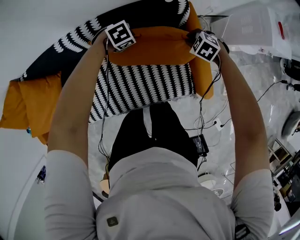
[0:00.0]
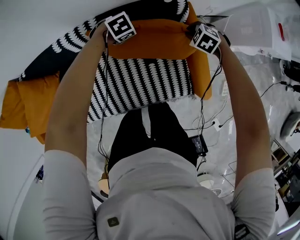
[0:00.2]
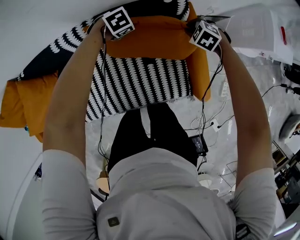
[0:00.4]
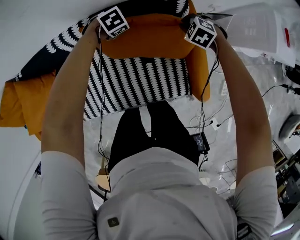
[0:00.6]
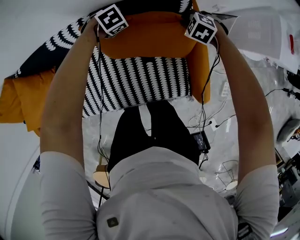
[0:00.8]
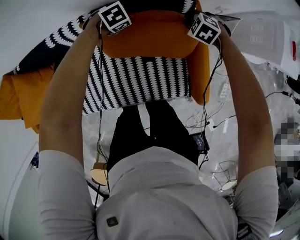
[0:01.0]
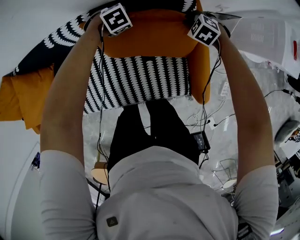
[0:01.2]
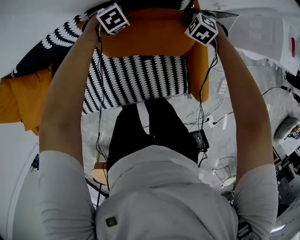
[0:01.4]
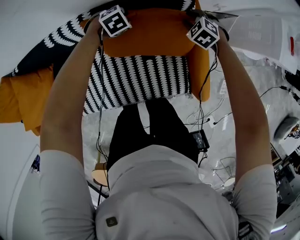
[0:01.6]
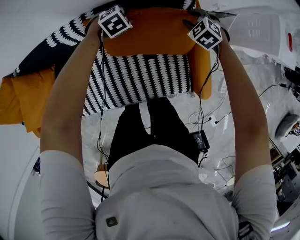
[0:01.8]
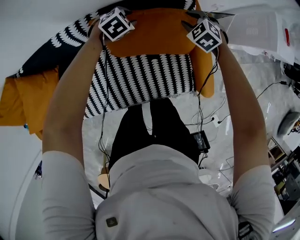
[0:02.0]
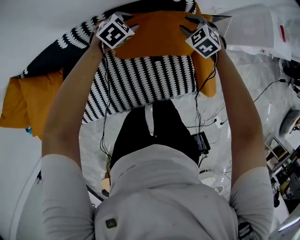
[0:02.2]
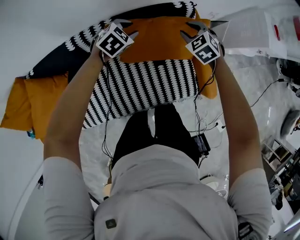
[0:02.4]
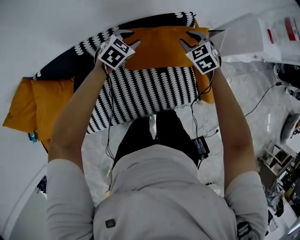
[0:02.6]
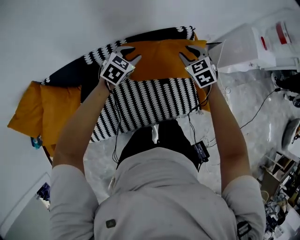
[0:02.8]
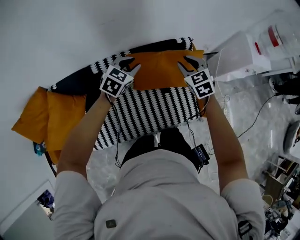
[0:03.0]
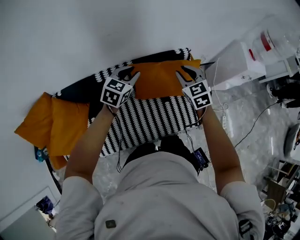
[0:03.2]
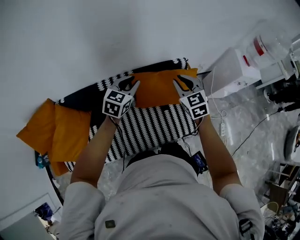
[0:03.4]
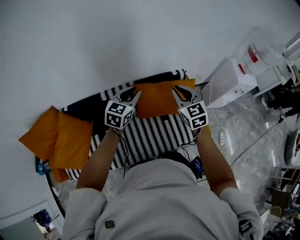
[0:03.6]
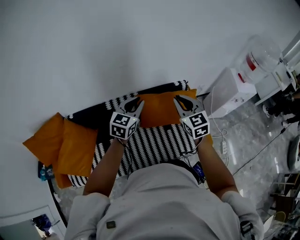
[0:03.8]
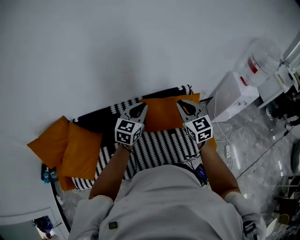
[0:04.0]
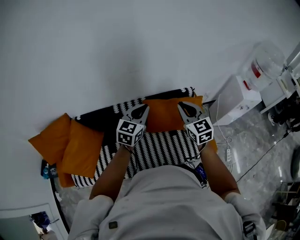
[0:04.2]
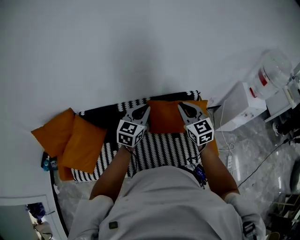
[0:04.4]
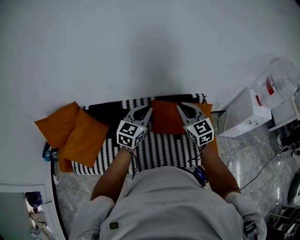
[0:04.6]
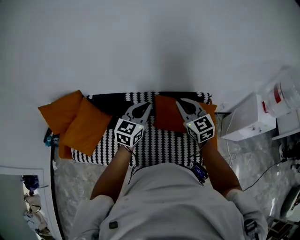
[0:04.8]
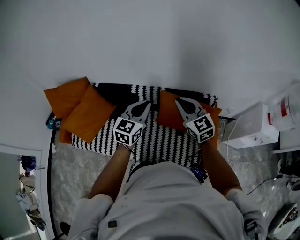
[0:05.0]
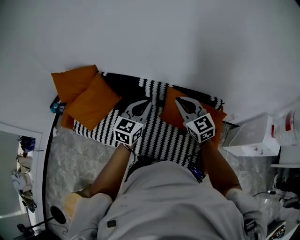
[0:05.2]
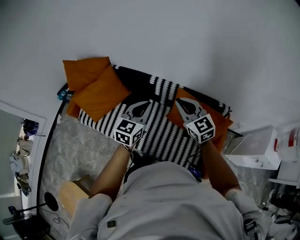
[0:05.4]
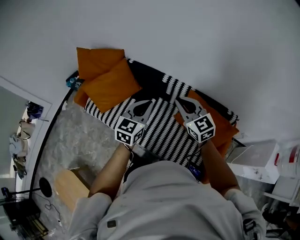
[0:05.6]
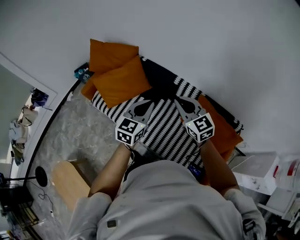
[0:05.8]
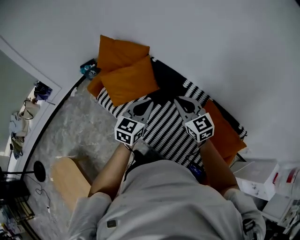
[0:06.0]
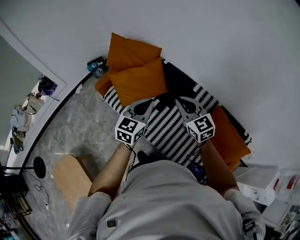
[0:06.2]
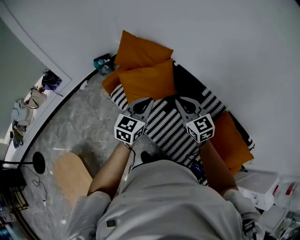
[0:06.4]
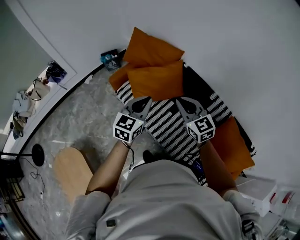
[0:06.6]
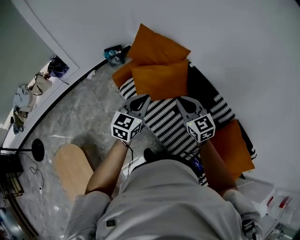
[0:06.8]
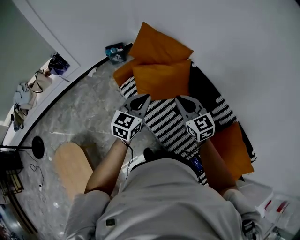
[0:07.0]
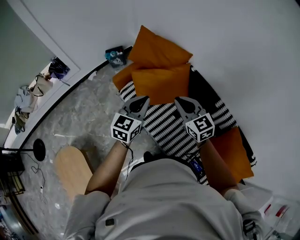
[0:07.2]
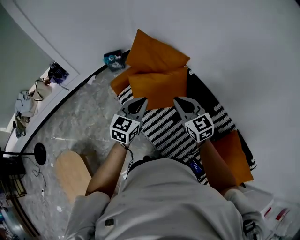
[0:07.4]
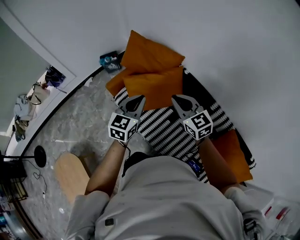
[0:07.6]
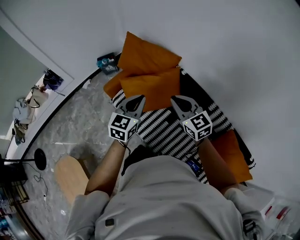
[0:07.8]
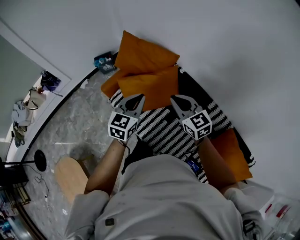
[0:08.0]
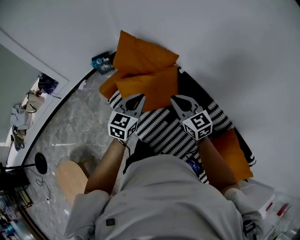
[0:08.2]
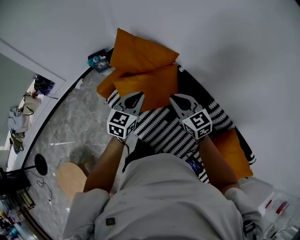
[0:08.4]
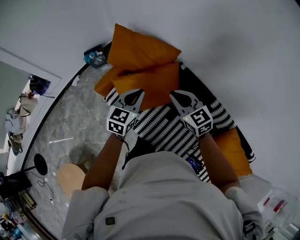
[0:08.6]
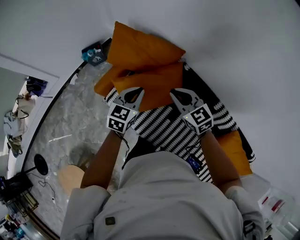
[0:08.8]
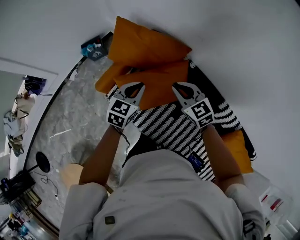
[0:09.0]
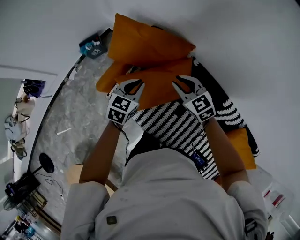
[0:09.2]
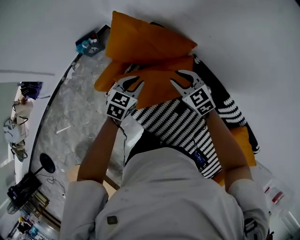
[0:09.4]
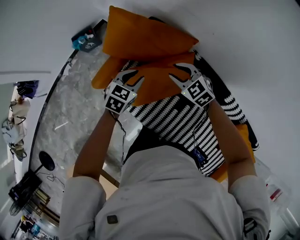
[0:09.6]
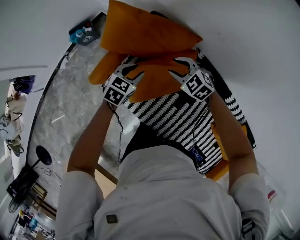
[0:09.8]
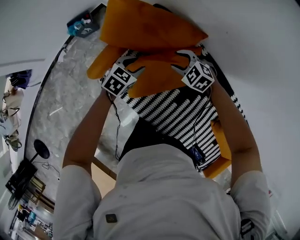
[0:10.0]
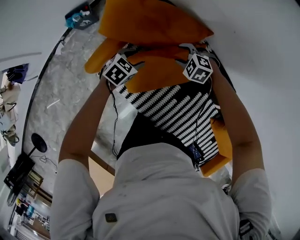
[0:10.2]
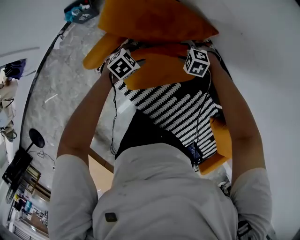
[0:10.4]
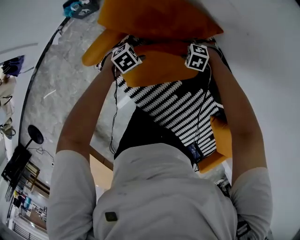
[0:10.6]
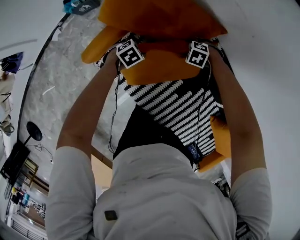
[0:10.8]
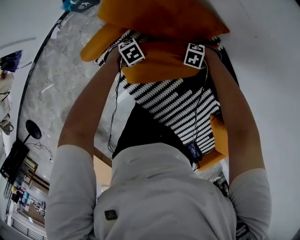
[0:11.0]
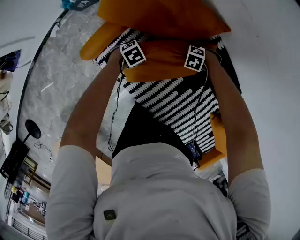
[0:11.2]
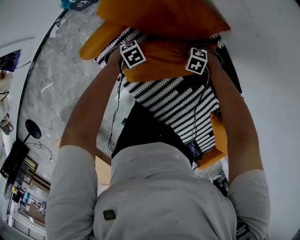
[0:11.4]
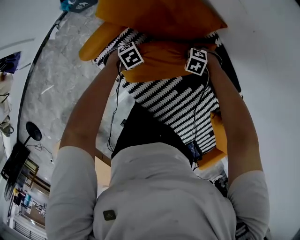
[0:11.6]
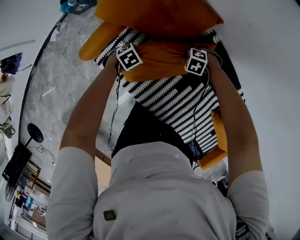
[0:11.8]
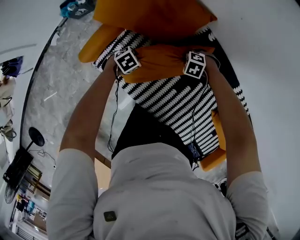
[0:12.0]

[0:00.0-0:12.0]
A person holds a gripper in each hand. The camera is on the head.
0:00.0 to 0:01.6: The right gripper changes place by approximately 10 cm, and opens; the left gripper moves approximately 10 cm, and opens its fingers.
0:01.6 to 0:03.0: The two grippers go approximately 30 cm upward. The right gripper angles its fingers upward, by some 30 degrees. Meanwhile the left gripper points its fingers roughly 40 degrees further upward.
0:03.0 to 0:04.4: The two grippers go some 20 cm upward and backward. The left gripper swivels about 30 degrees, and closes. The right gripper changes its angle by roughly 30 degrees, and closes.
0:04.4 to 0:06.0: The right gripper ends up about 35 cm from where it was, and rotates roughly 60 degrees, while the left gripper changes place by approximately 30 cm, and turns by about 50 degrees.
0:06.0 to 0:07.6: The two grippers go about 30 cm forward and to the left.
0:07.6 to 0:09.0: The two grippers go about 30 cm forward and downward.
0:09.0 to 0:10.4: Both grippers travel together downward, approximately 30 cm. The left gripper rotates about 40 degrees, and opens up. The right gripper points its fingers some 50 degrees further downward, and opens up.
0:10.4 to 0:12.0: The left gripper goes roughly 5 cm downward, and closes, while the right gripper moves about 10 cm, and closes its fingers.

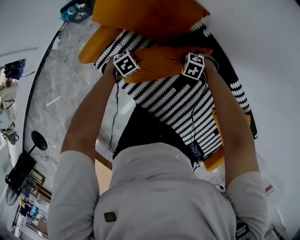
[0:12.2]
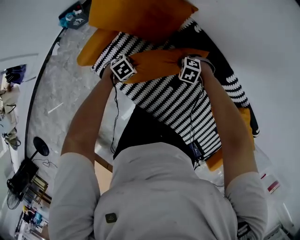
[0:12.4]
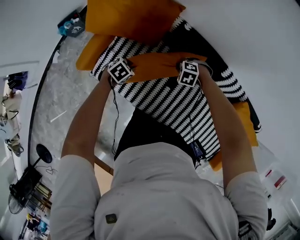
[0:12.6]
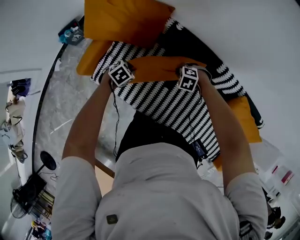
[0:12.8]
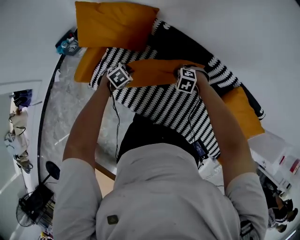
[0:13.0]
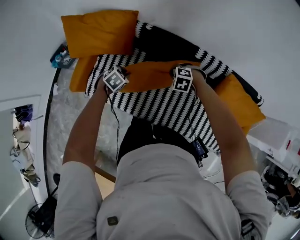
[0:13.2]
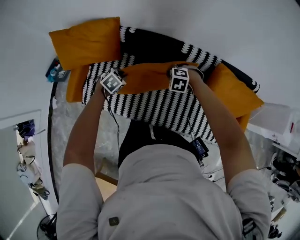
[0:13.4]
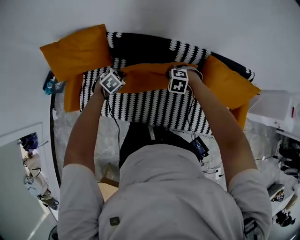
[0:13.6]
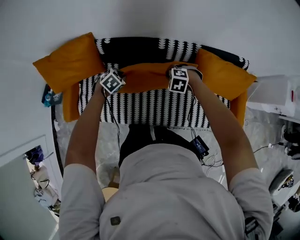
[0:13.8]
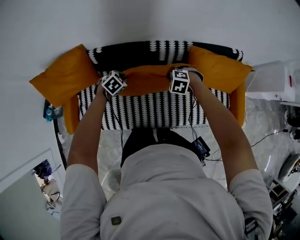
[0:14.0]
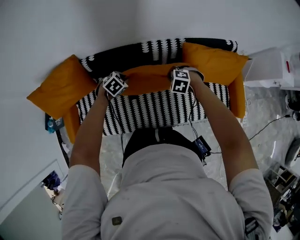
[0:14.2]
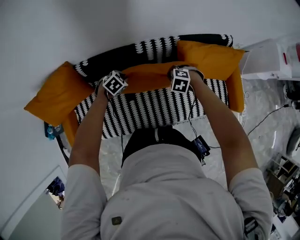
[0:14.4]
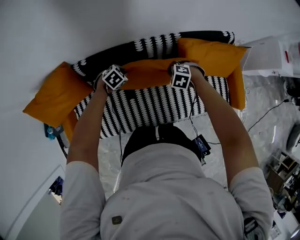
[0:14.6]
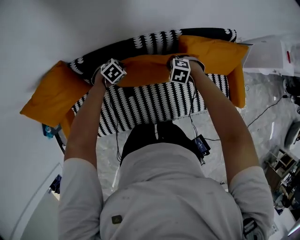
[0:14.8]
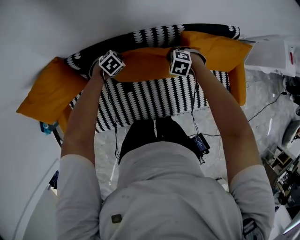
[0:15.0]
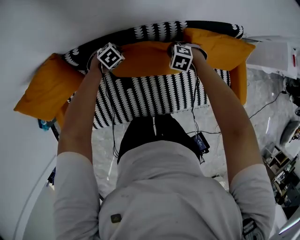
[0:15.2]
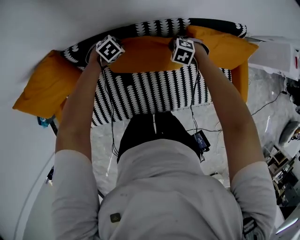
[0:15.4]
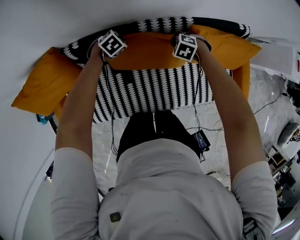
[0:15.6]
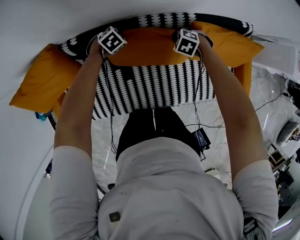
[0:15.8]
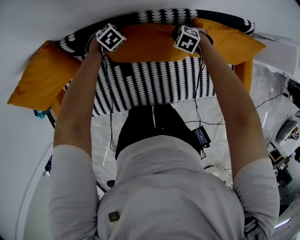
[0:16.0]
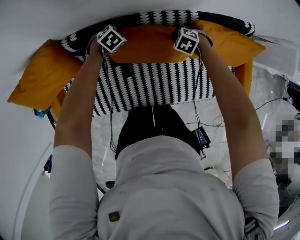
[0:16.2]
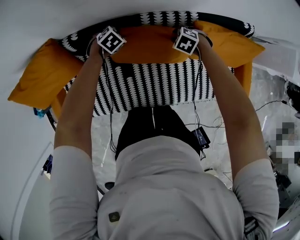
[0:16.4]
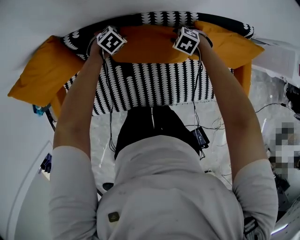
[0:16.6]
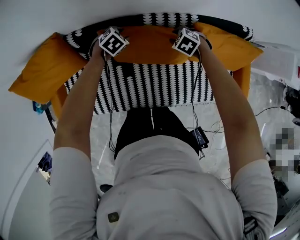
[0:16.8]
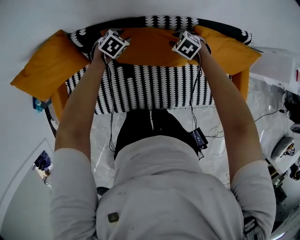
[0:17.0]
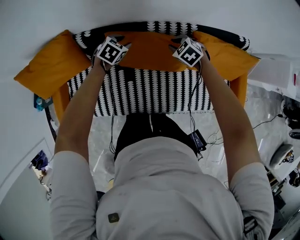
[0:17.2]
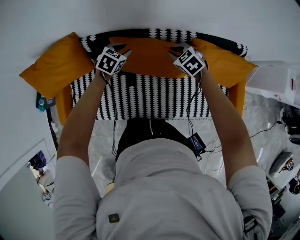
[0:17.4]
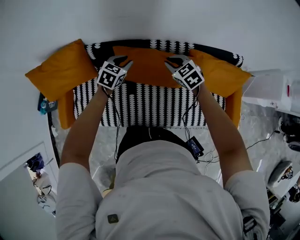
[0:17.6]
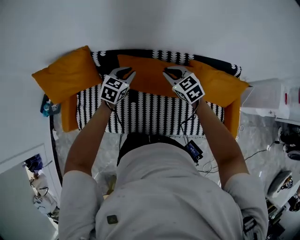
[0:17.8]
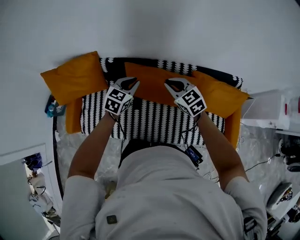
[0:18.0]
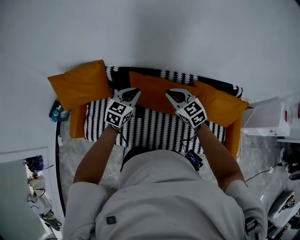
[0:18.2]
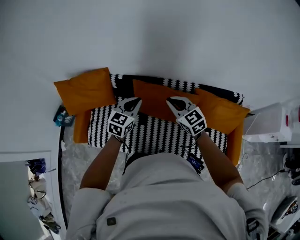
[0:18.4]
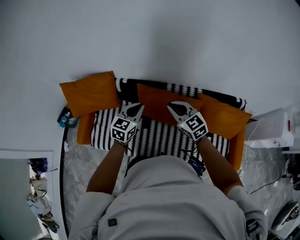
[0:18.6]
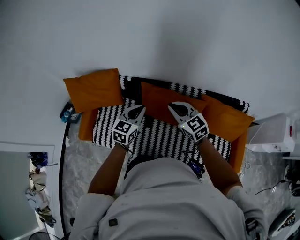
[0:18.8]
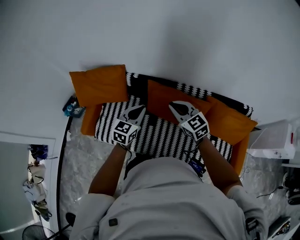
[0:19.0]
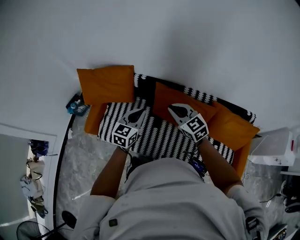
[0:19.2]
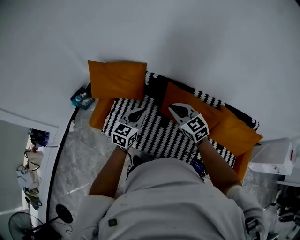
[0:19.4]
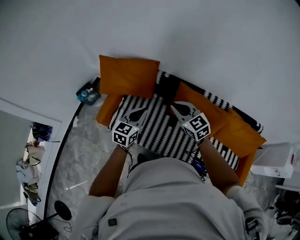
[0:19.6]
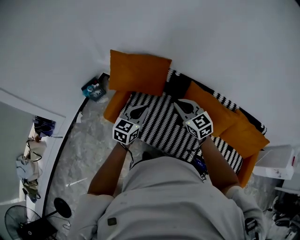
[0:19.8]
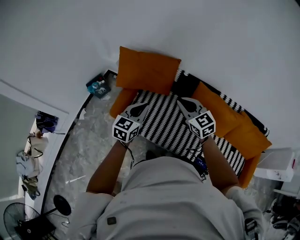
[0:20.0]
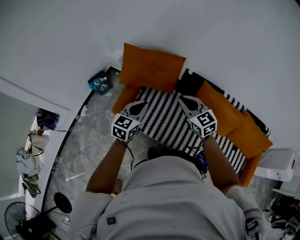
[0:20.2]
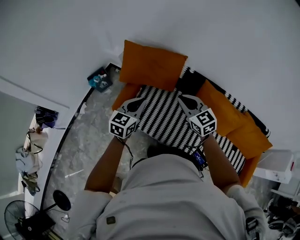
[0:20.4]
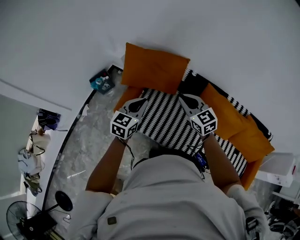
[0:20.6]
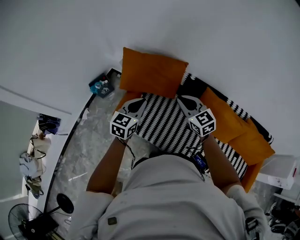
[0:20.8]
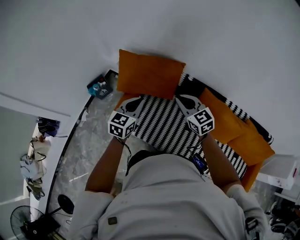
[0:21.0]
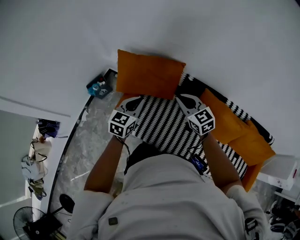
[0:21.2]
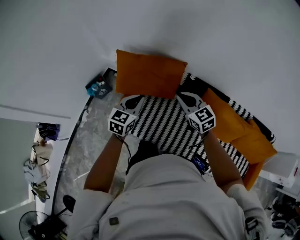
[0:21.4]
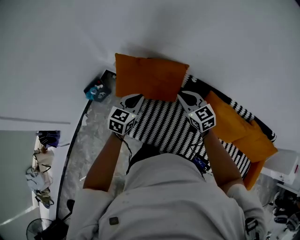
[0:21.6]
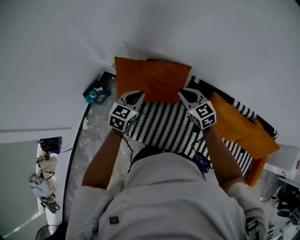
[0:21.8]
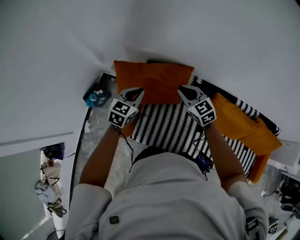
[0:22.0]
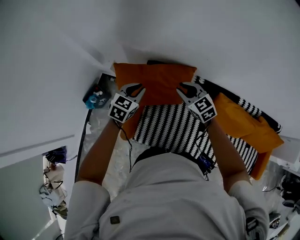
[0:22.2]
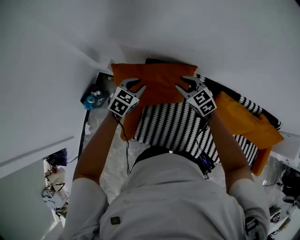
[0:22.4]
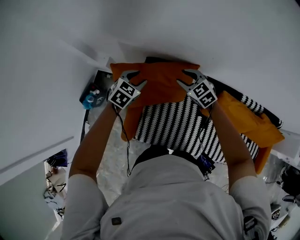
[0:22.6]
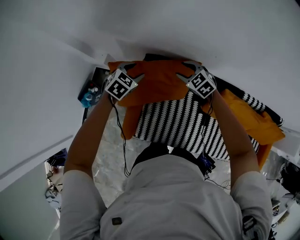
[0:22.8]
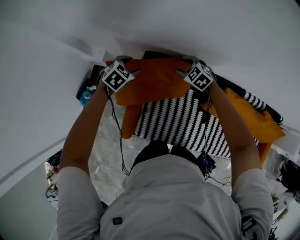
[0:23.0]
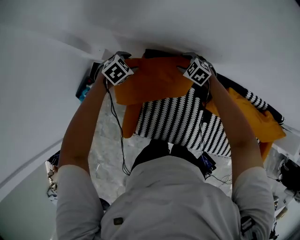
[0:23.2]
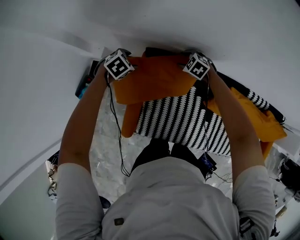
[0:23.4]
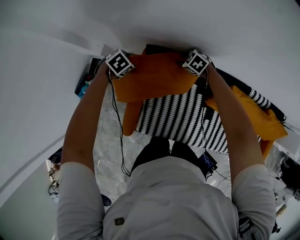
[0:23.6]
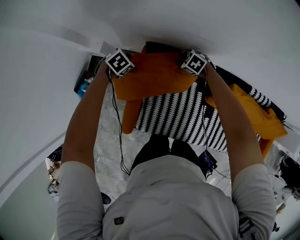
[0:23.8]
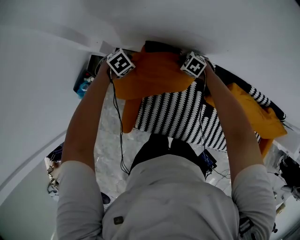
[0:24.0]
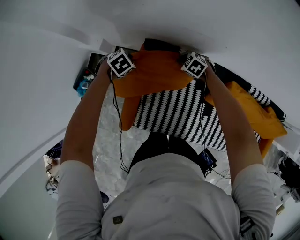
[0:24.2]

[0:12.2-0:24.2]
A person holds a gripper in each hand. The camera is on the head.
0:12.2 to 0:13.8: The left gripper shifts by some 40 cm, and swivels about 40 degrees, while the right gripper shifts by approximately 40 cm, and rotates roughly 30 degrees.
0:13.8 to 0:15.2: The left gripper moves about 25 cm. Meanwhile the right gripper moves some 20 cm, and swivels approximately 20 degrees.
0:15.2 to 0:16.6: The left gripper opens up; the right gripper opens.
0:16.6 to 0:18.2: Both grippers travel together upward, approximately 30 cm. The left gripper tilts its fingers some 40 degrees upward, and closes. The right gripper points its fingers approximately 50 degrees further upward, and closes up.
0:18.2 to 0:19.8: The grippers both shift to the left by about 35 cm. The left gripper changes its angle by roughly 20 degrees.
0:19.8 to 0:21.2: The left gripper heads forward and to the left, covering some 15 cm. Meanwhile the right gripper moves forward, about 15 cm.
0:21.2 to 0:22.6: The grippers both shift forward and downward by about 35 cm. The left gripper rotates roughly 30 degrees, and opens; the right gripper swivels roughly 20 degrees, and opens.
0:22.6 to 0:24.2: The two grippers go roughly 15 cm downward. The right gripper swivels approximately 30 degrees, and closes up. The left gripper changes its angle by about 30 degrees, and closes its fingers.
